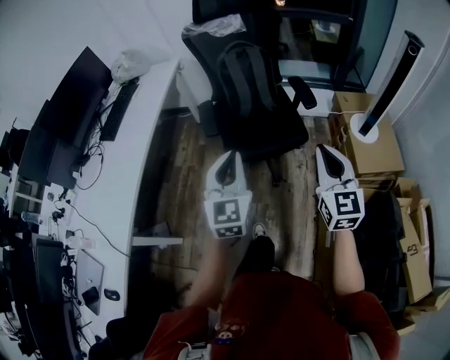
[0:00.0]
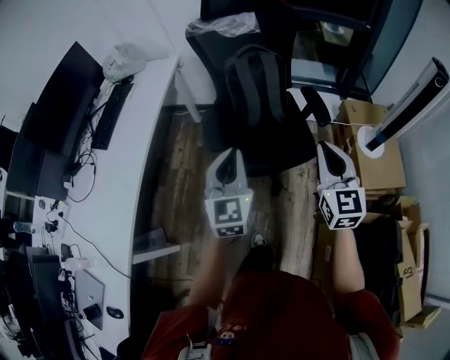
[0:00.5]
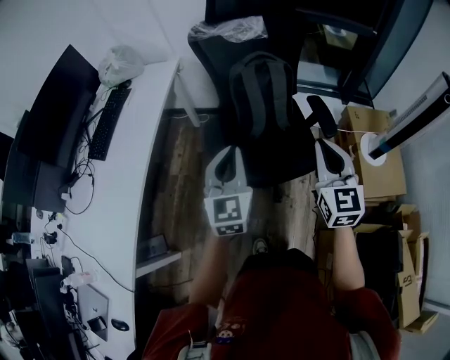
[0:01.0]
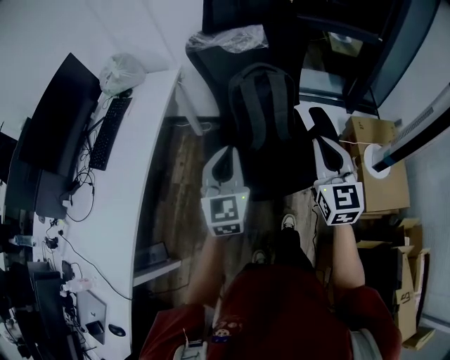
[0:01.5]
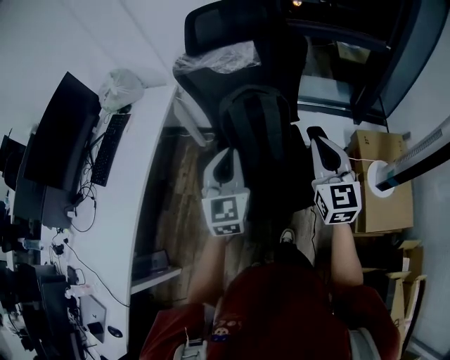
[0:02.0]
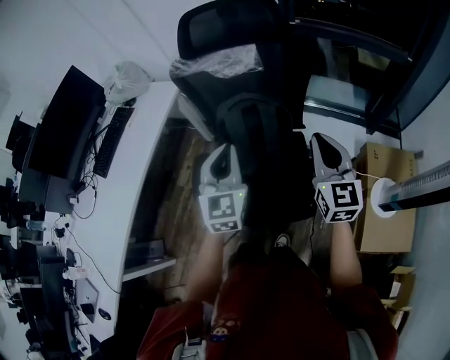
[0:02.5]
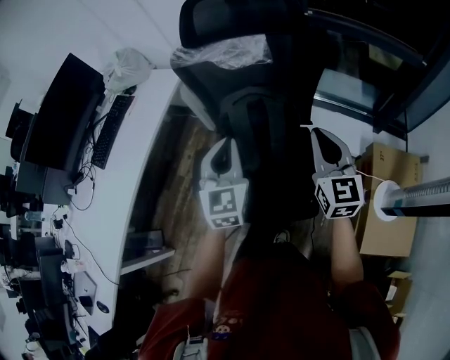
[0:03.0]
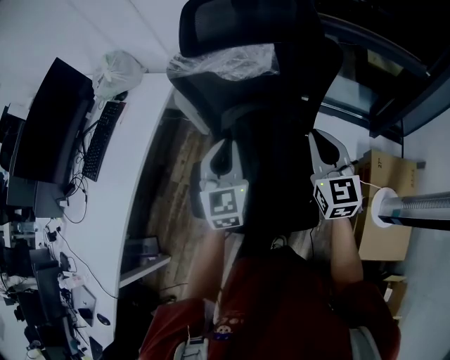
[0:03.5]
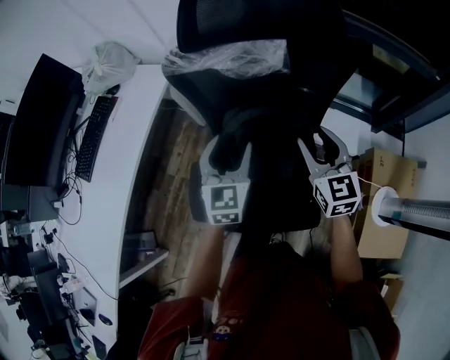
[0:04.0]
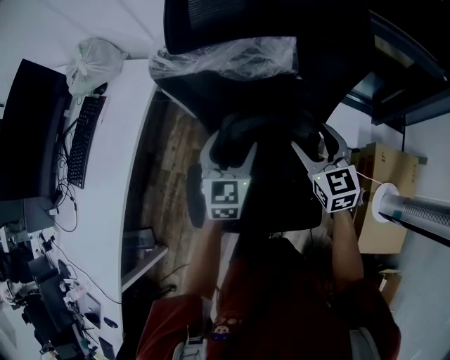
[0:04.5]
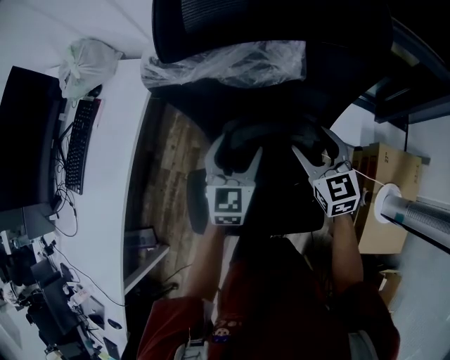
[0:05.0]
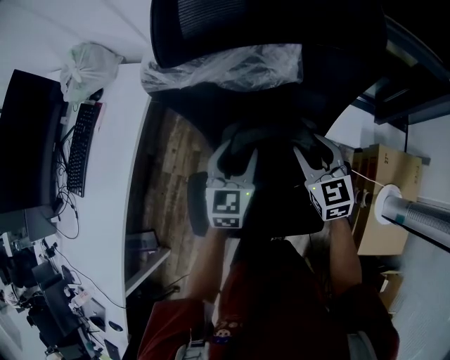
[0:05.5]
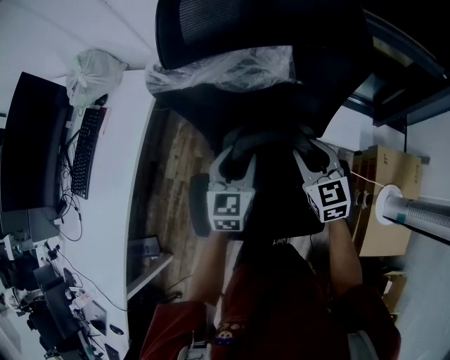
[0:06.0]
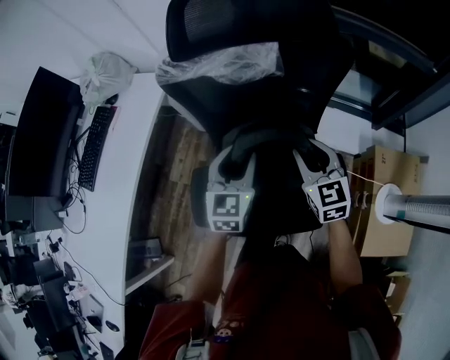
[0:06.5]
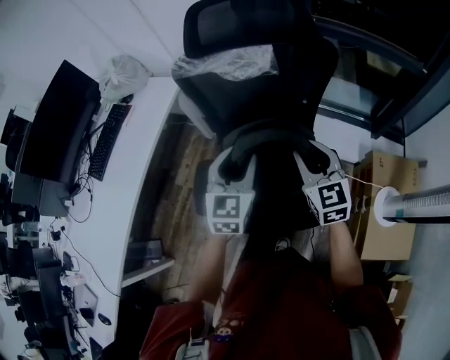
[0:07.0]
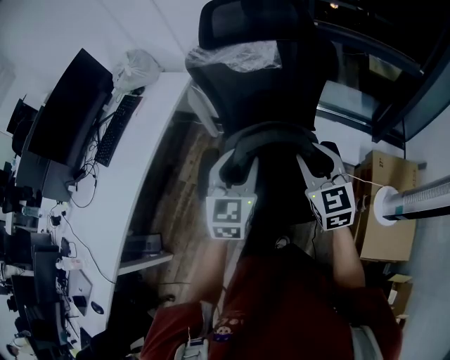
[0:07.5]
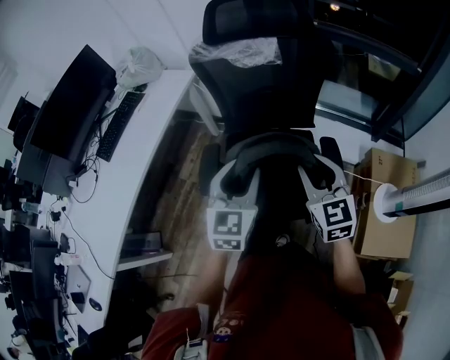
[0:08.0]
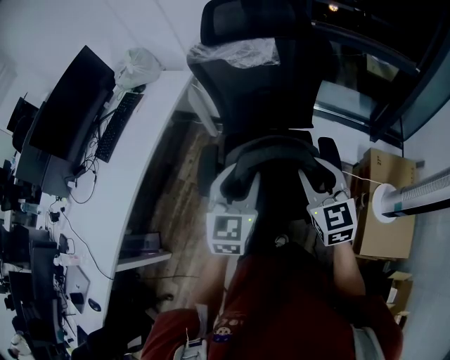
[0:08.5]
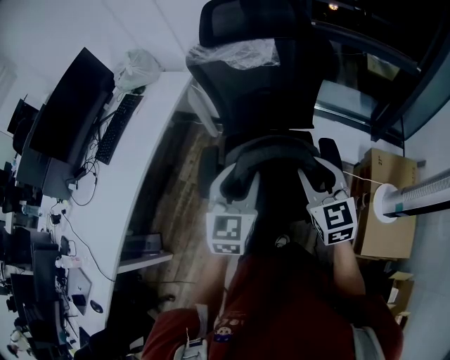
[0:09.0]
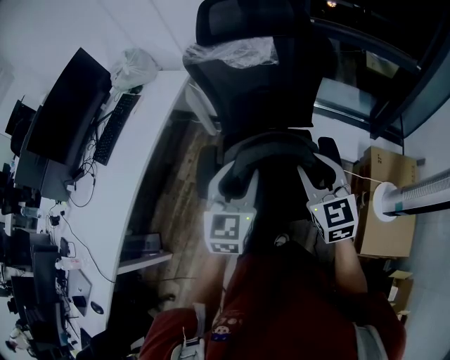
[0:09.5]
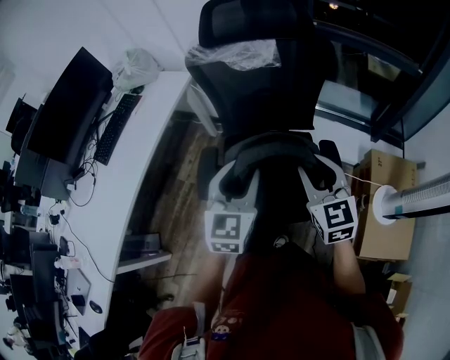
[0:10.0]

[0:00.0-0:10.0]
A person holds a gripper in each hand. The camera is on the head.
0:00.0 to 0:02.0: The pair of grippers is taken forward, approximately 40 cm.
0:02.0 to 0:04.0: The right gripper is displaced forward by approximately 25 cm, and opens up. Meanwhile the left gripper goes approximately 25 cm forward and downward, and opens.
0:04.0 to 0:06.0: The two grippers go some 10 cm downward and forward. The right gripper opens and closes again.
0:06.0 to 0:08.0: The grippers both shift backward and upward by about 35 cm.
0:08.0 to 0:10.0: The grippers move only a little.

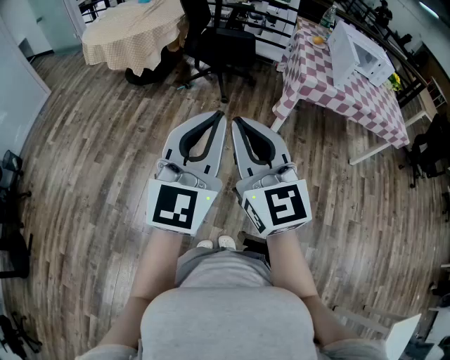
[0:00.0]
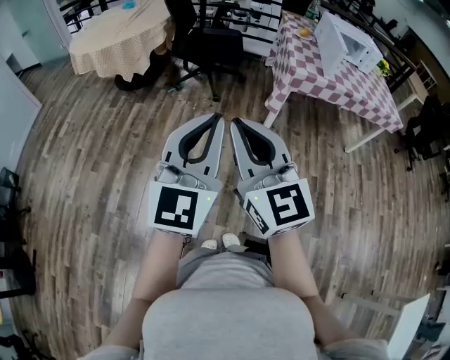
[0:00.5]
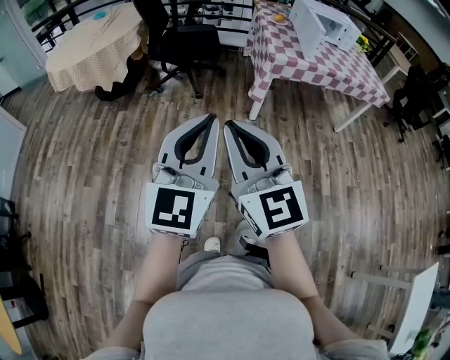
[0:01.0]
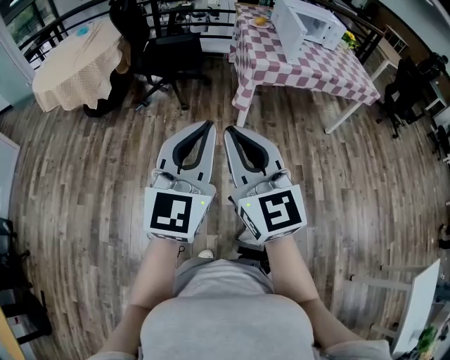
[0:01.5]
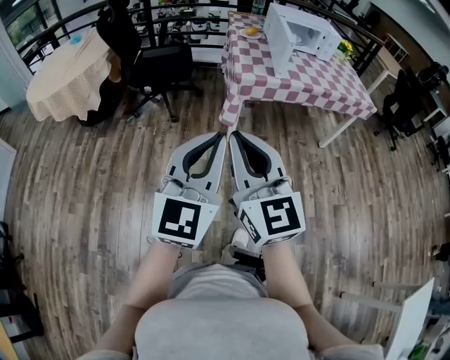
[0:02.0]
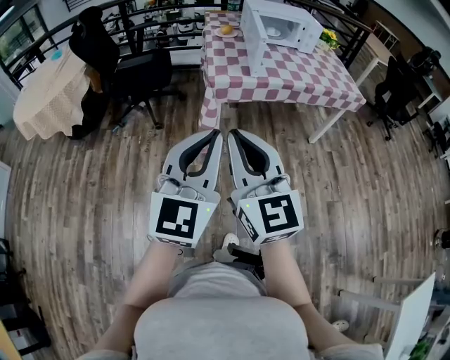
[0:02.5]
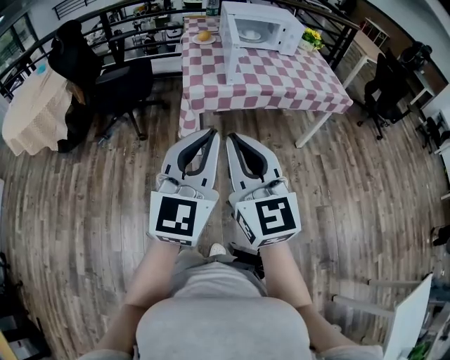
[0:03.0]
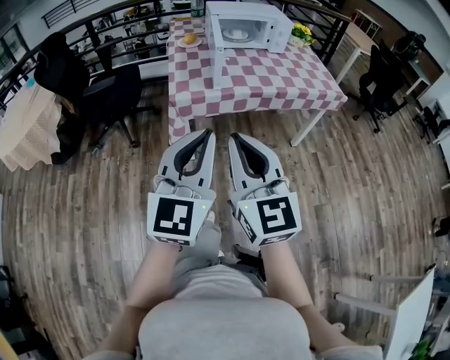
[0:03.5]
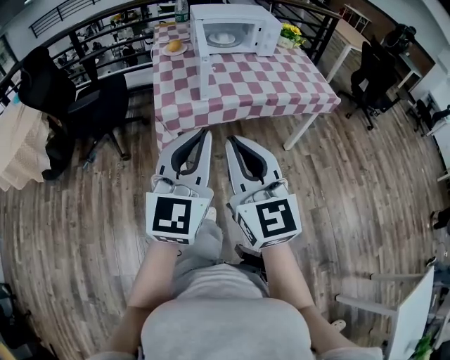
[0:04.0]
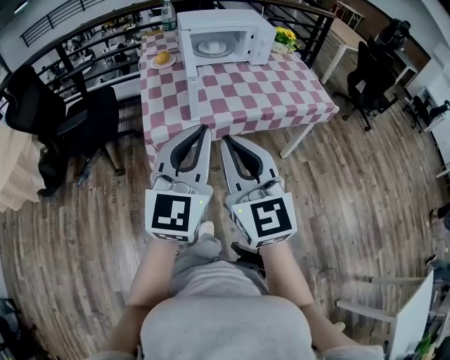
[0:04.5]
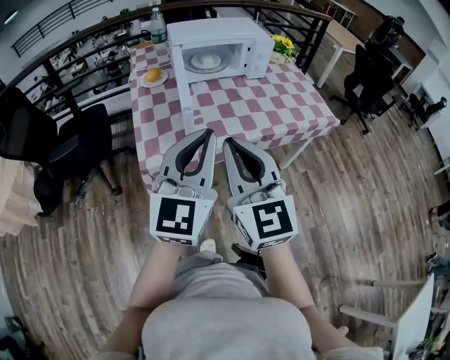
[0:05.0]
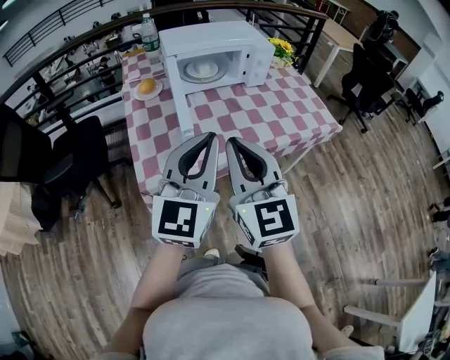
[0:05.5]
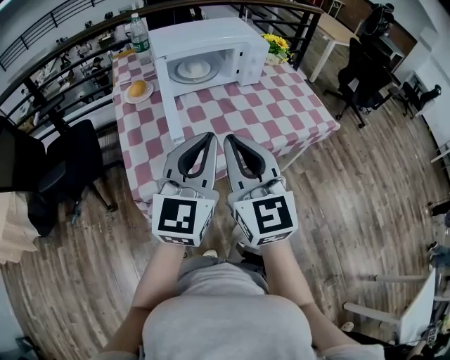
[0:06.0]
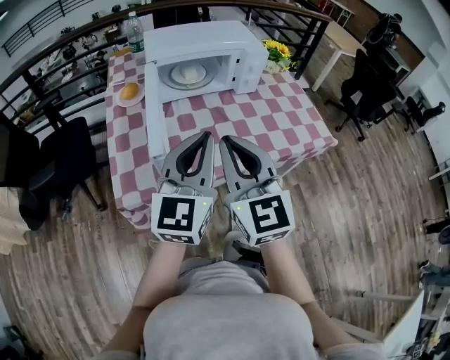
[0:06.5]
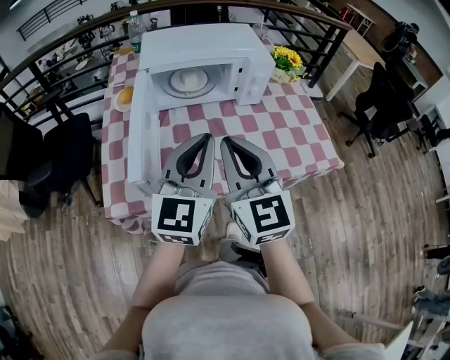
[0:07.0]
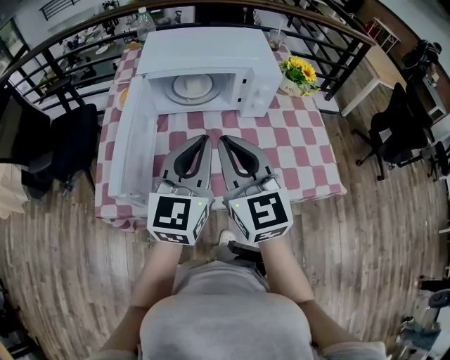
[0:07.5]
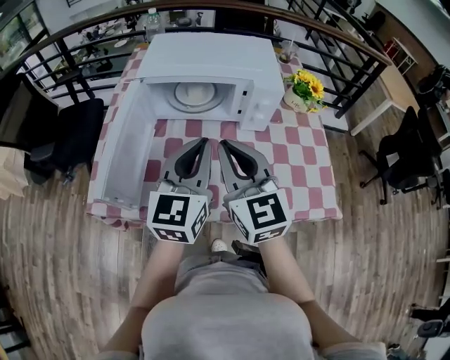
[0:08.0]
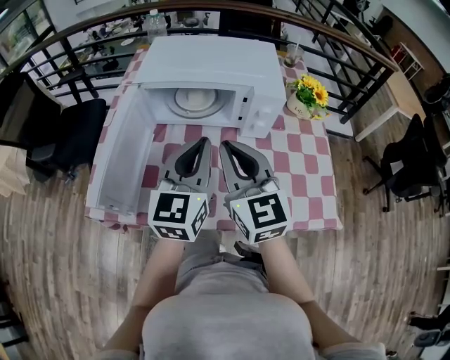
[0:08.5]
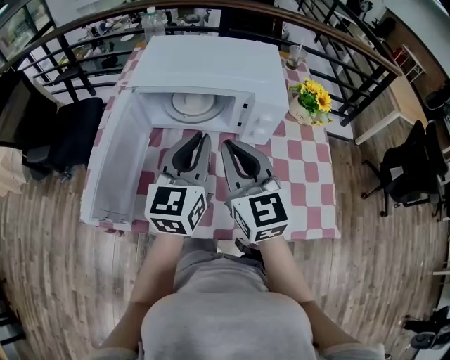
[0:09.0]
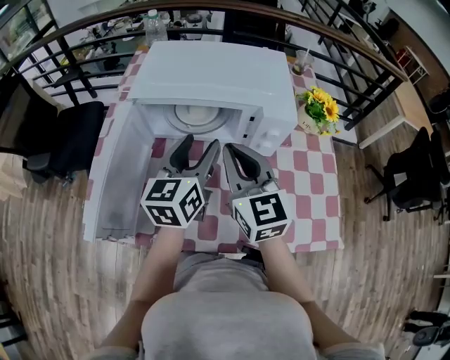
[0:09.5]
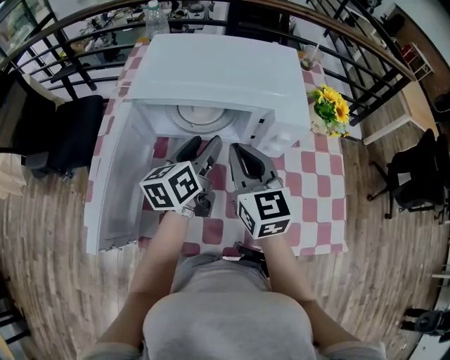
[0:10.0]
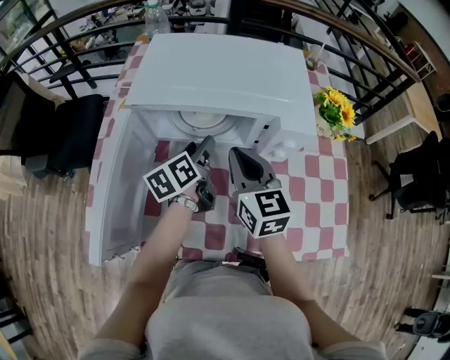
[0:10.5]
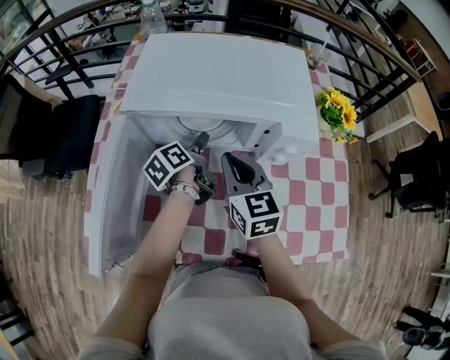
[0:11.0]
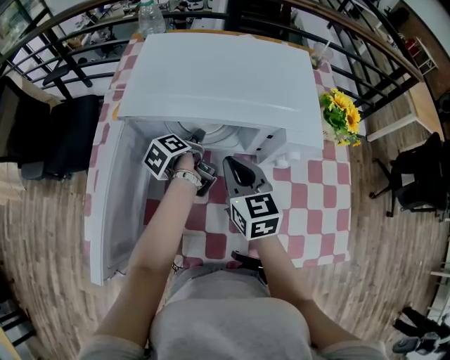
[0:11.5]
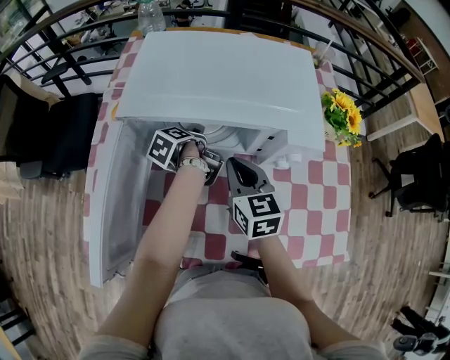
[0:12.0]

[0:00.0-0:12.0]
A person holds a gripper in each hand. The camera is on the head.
0:00.0 to 0:02.0: The two grippers go about 20 cm to the right and forward.
0:02.0 to 0:04.0: The right gripper heads to the right and forward, covering some 35 cm; the left gripper goes some 35 cm forward and to the right.
0:04.0 to 0:06.0: The two grippers go roughly 35 cm forward.
0:06.0 to 0:08.0: Both grippers travel together forward and to the right, roughly 30 cm. The right gripper rotates approximately 30 degrees. The left gripper swivels approximately 20 degrees.
0:08.0 to 0:10.0: The grippers both shift forward and downward by roughly 20 cm. The left gripper turns by some 40 degrees, and opens its fingers.
0:10.0 to 0:12.0: The right gripper travels downward and forward by about 10 cm, while the left gripper is displaced downward and forward by approximately 20 cm, and angles its fingers downward, by approximately 30 degrees.

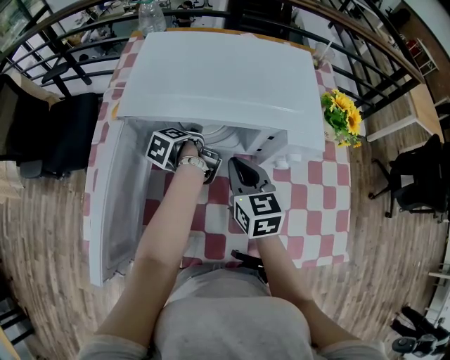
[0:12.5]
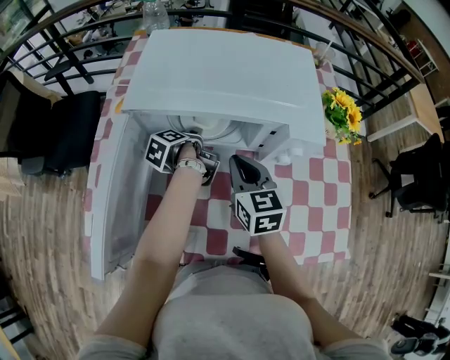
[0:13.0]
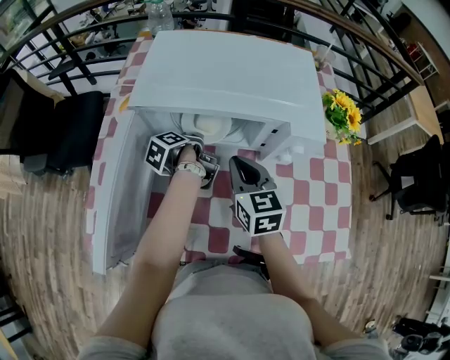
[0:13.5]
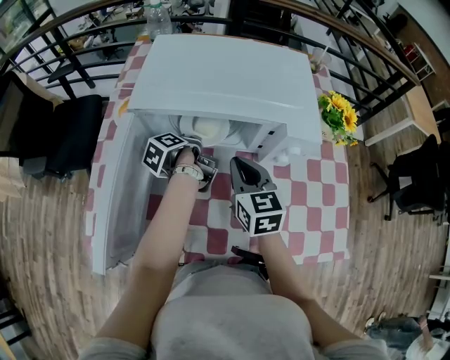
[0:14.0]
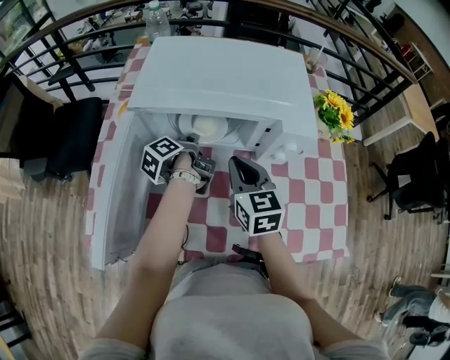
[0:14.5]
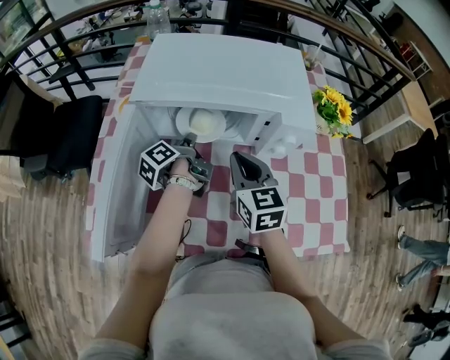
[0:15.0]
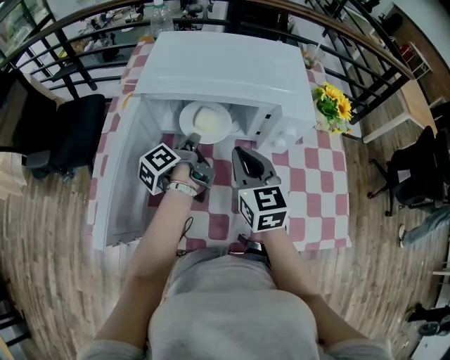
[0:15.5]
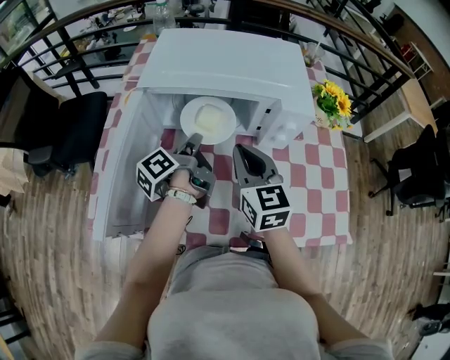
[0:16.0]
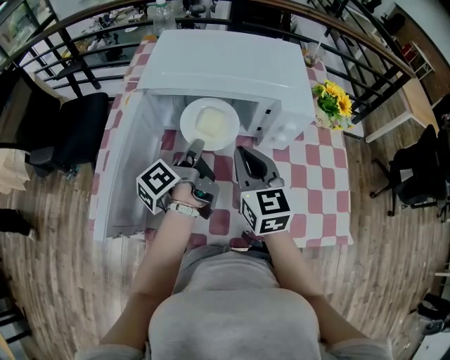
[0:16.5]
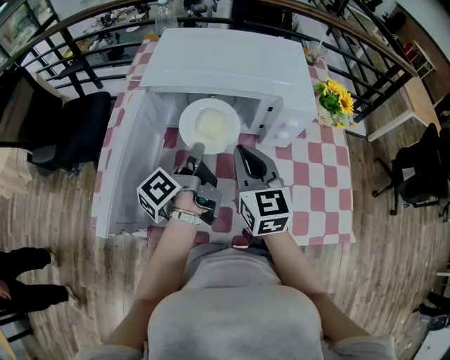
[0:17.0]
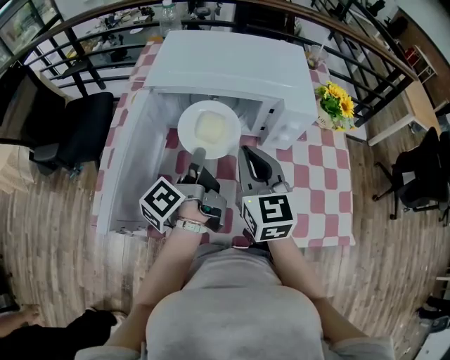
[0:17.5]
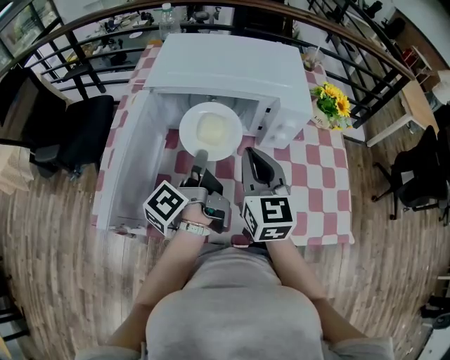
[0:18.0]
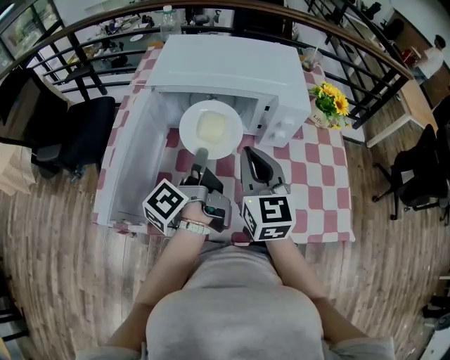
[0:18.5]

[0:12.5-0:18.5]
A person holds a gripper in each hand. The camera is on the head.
0:12.5 to 0:14.5: The left gripper heads upward, covering about 5 cm, and closes up.
0:14.5 to 0:16.5: The right gripper ends up about 5 cm from where it was, while the left gripper goes some 15 cm backward and upward.
0:16.5 to 0:18.5: The right gripper moves roughly 5 cm. The left gripper is displaced backward by about 5 cm.
